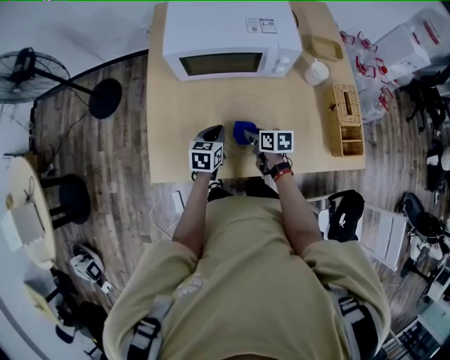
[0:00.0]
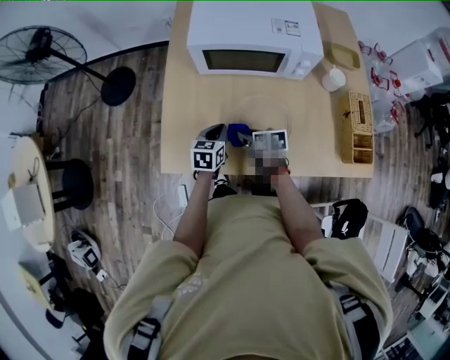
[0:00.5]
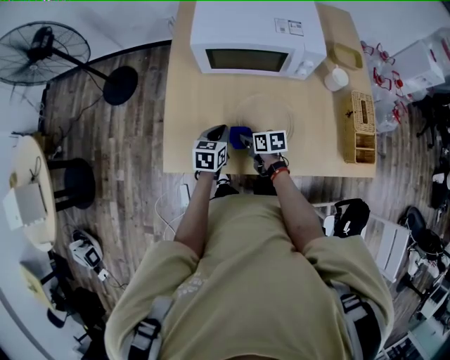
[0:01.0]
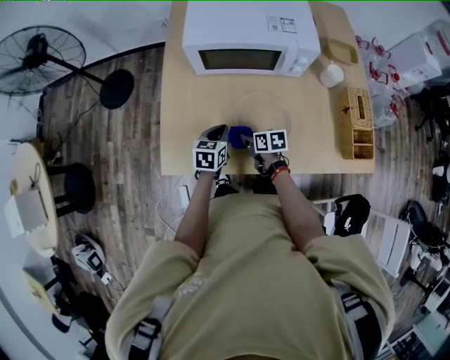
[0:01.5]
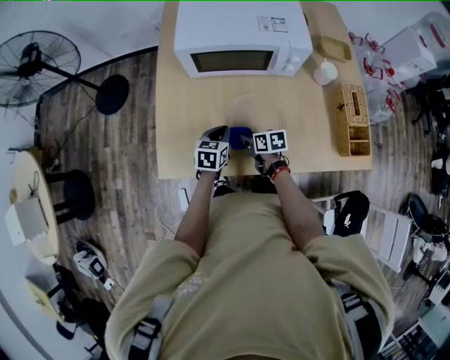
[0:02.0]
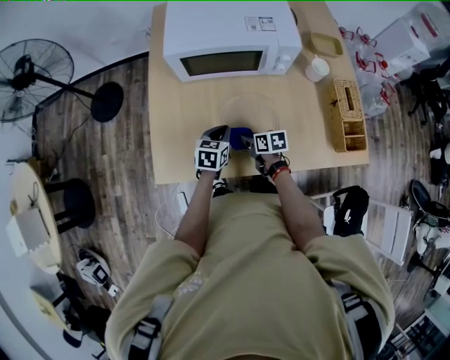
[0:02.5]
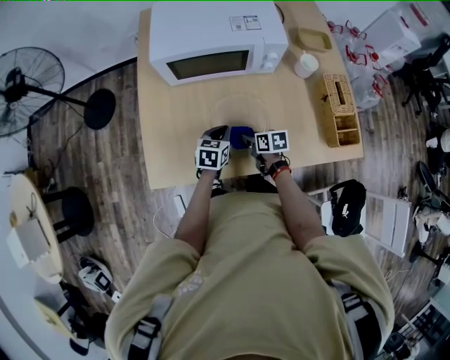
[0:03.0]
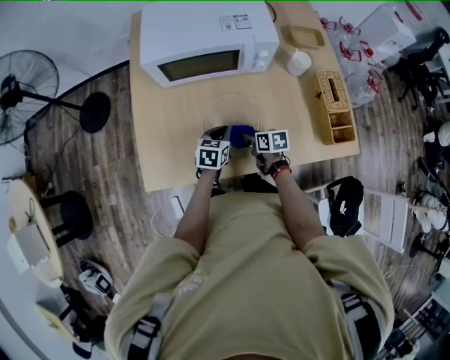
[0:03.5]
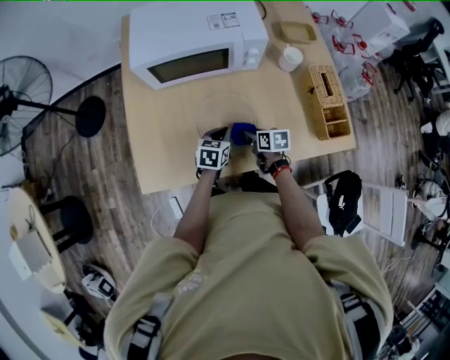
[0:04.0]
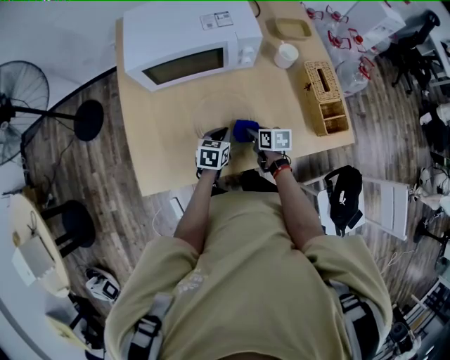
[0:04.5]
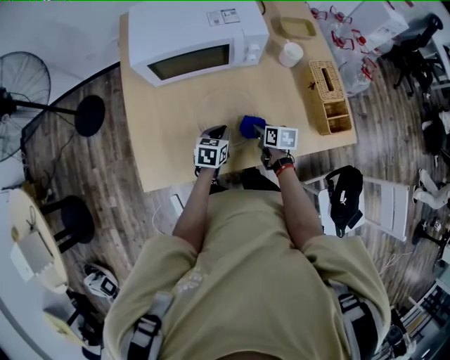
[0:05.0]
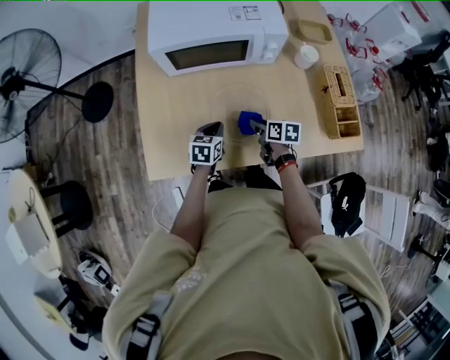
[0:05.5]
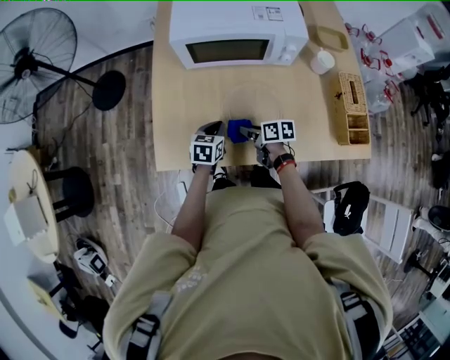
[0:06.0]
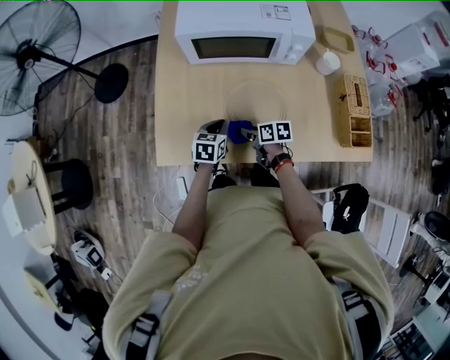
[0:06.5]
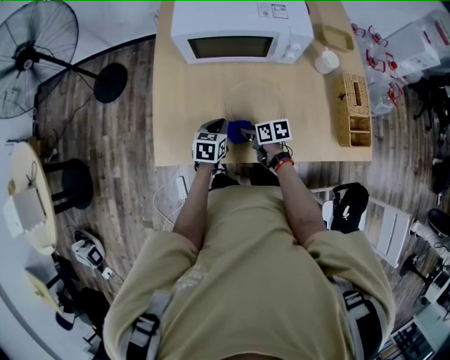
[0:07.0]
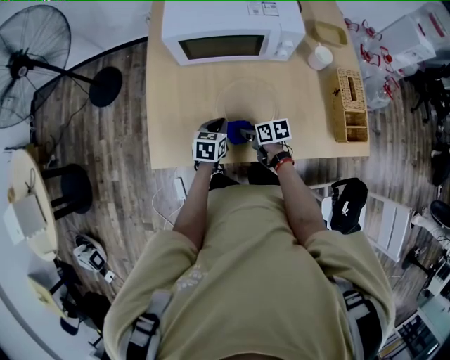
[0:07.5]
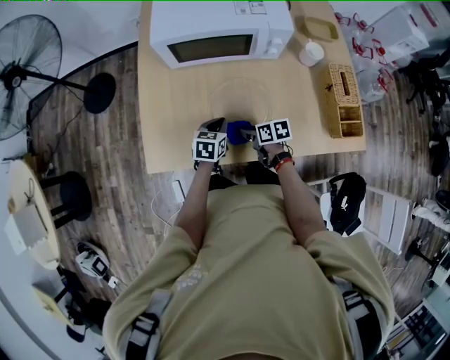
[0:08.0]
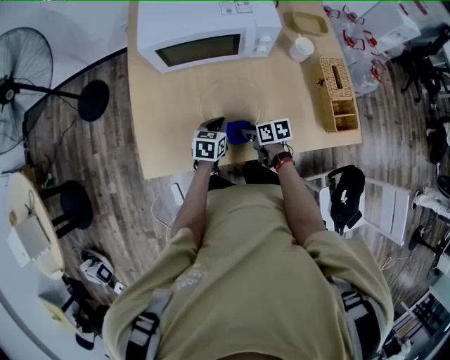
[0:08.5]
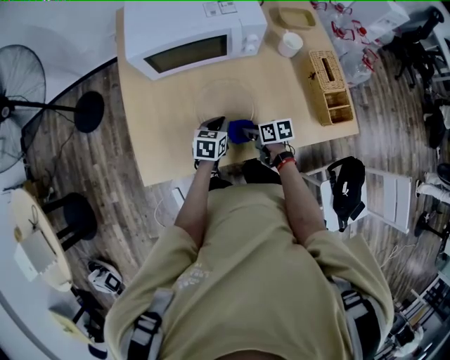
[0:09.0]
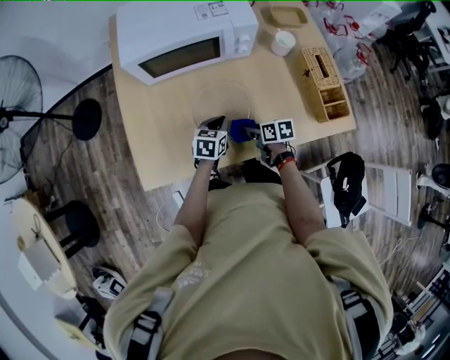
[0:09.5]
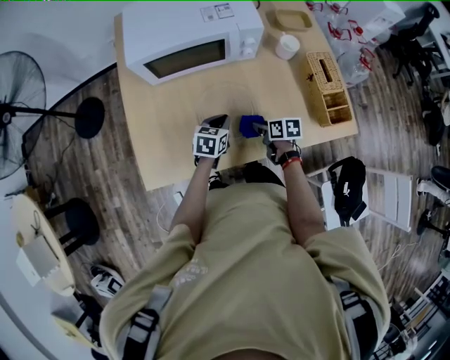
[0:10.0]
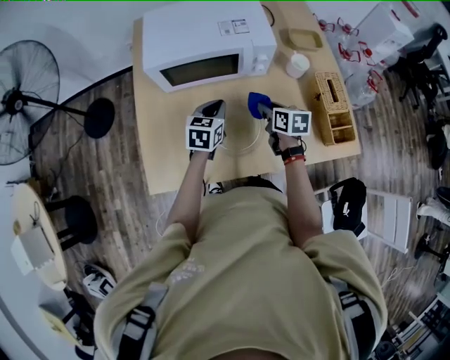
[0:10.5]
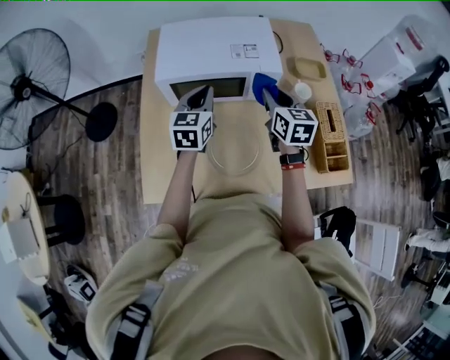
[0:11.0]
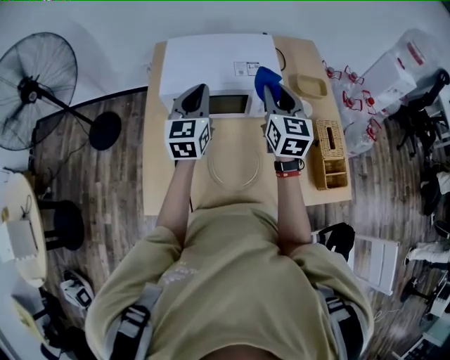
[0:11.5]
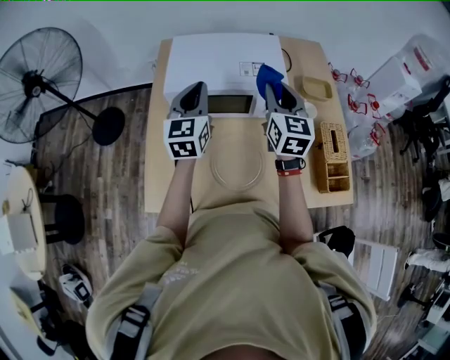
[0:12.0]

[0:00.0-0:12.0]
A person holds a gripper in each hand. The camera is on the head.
0:00.0 to 0:02.0: The right gripper heads to the left, covering about 5 cm.
0:02.0 to 0:04.0: Both grippers move to the right, some 10 cm.
0:04.0 to 0:06.0: Both grippers travel together to the left, approximately 10 cm. The right gripper turns by approximately 20 degrees.
0:06.0 to 0:08.0: The left gripper goes some 5 cm to the right; the right gripper changes place by some 5 cm.
0:08.0 to 0:10.0: The right gripper shifts approximately 10 cm to the right. Meanwhile the left gripper goes some 5 cm to the right.
0:10.0 to 0:12.0: Both grippers move upward and forward, roughly 40 cm. The right gripper points its fingers roughly 40 degrees further upward. The left gripper points its fingers some 40 degrees further upward.

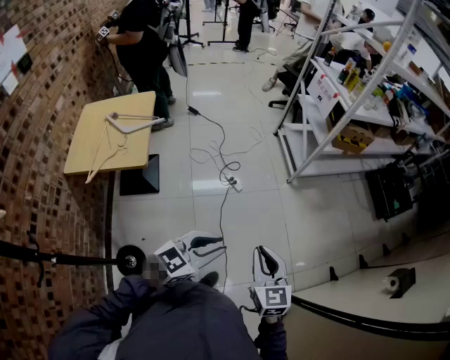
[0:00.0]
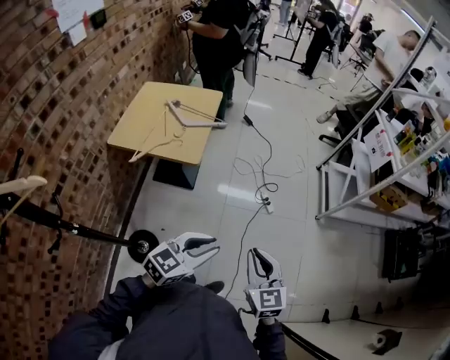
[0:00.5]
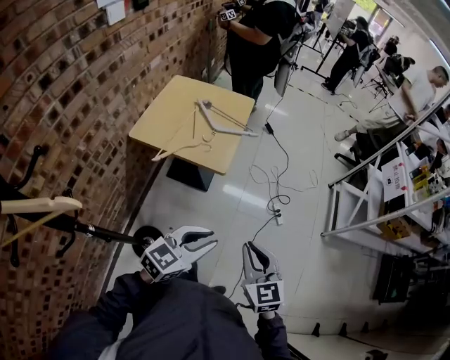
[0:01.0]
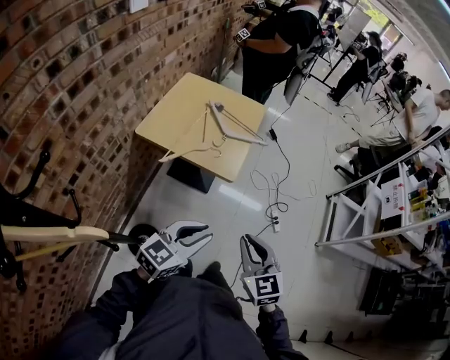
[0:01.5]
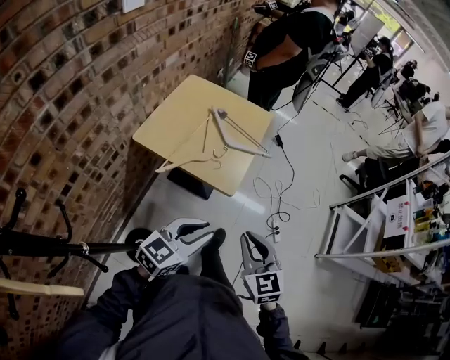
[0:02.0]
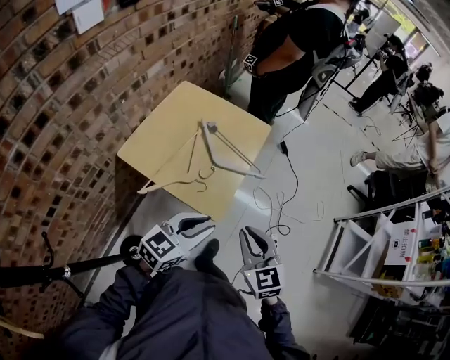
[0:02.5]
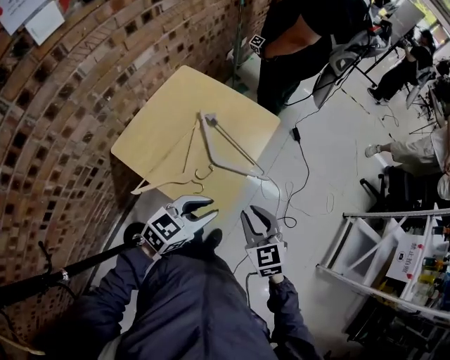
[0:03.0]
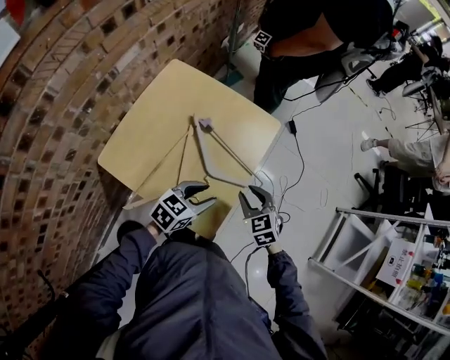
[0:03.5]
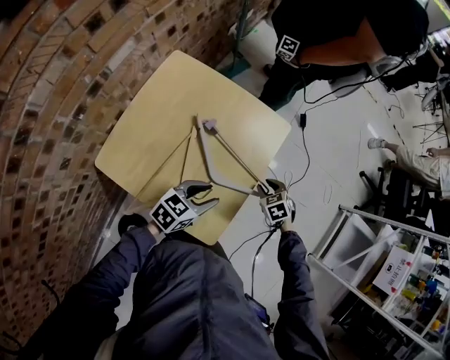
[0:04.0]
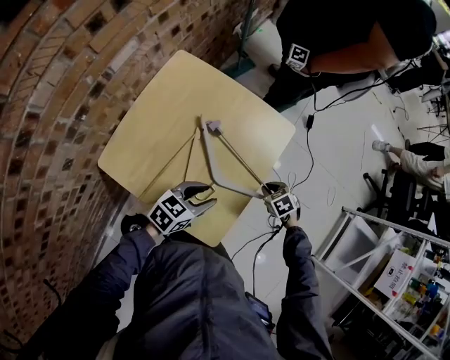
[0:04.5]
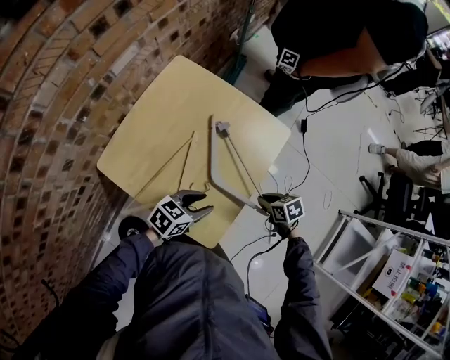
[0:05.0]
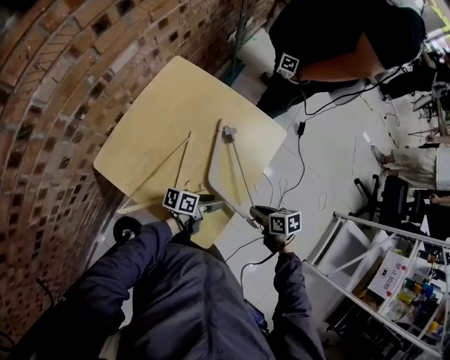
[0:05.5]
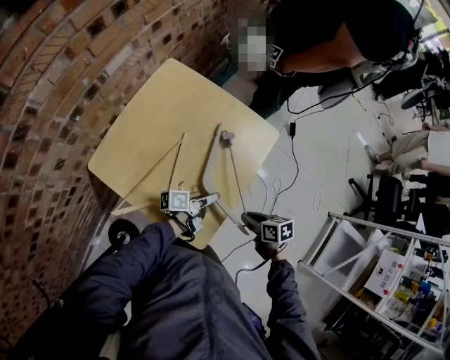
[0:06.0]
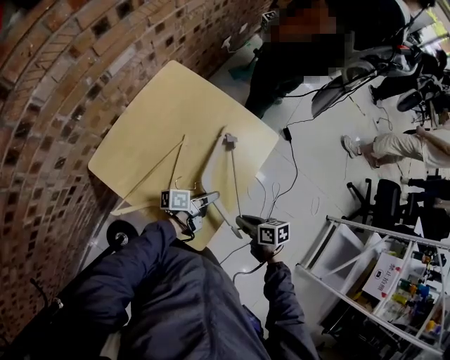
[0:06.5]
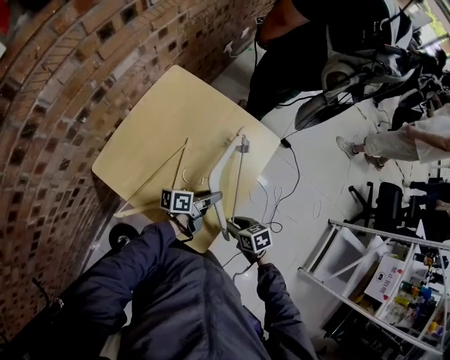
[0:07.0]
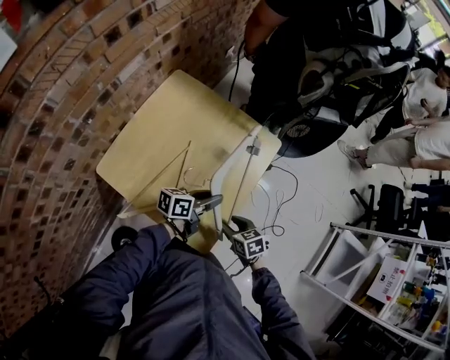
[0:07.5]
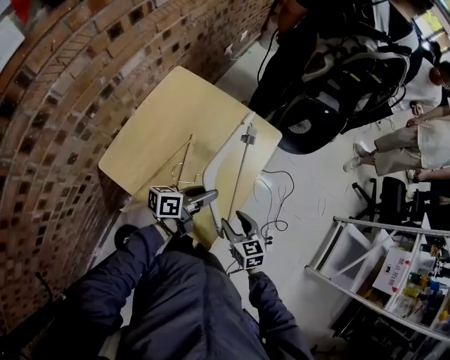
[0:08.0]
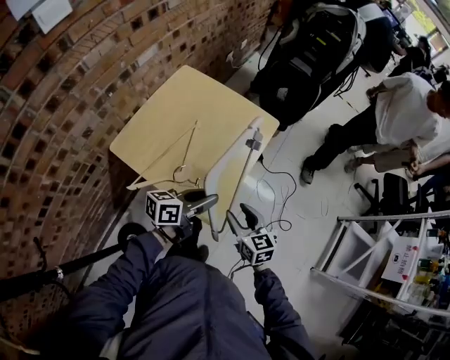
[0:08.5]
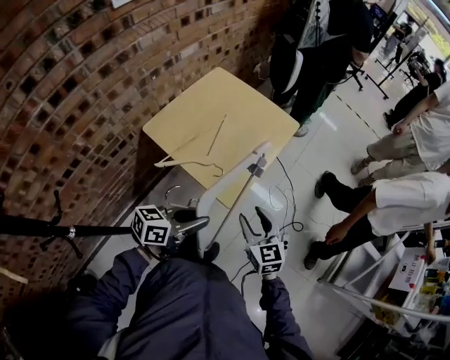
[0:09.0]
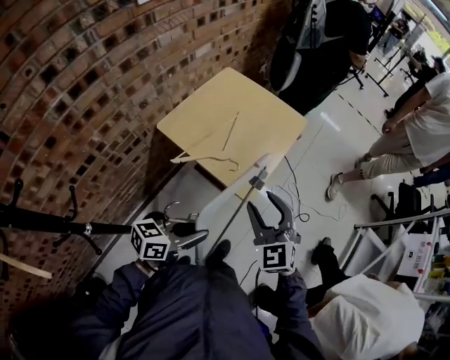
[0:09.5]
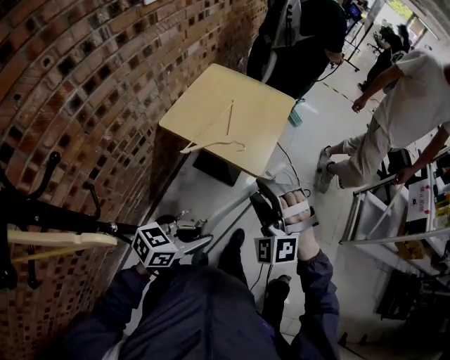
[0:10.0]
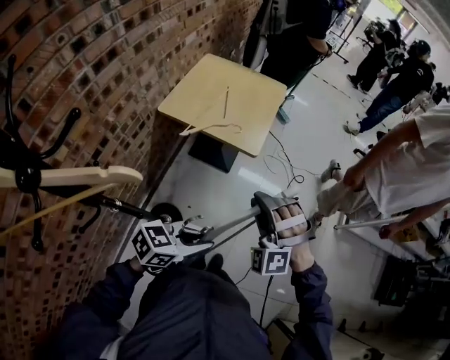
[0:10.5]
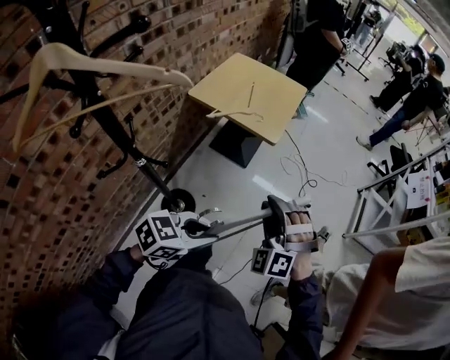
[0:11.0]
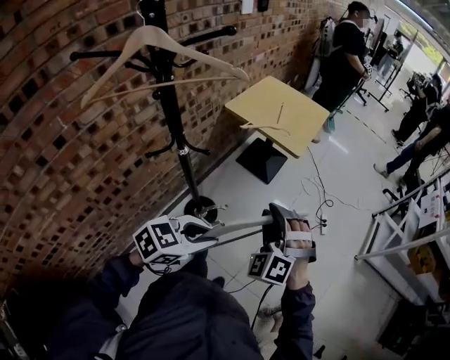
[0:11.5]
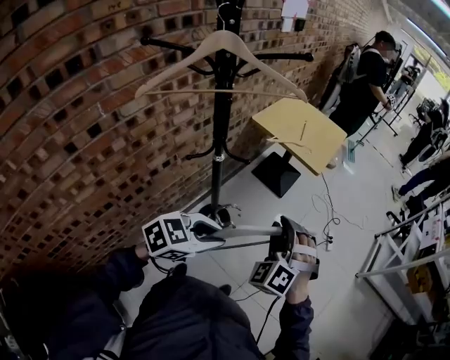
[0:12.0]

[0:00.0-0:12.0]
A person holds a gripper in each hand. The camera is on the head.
0:00.0 to 0:02.0: Both grippers are carried some 40 cm. The left gripper turns by approximately 40 degrees; the right gripper turns by approximately 40 degrees.
0:02.0 to 0:04.0: The grippers both shift forward and downward by about 50 cm. The right gripper tilts its fingers some 40 degrees downward, and opens up. Meanwhile the left gripper rotates about 30 degrees, and opens.
0:04.0 to 0:06.0: The right gripper changes place by some 10 cm, rotates approximately 40 degrees, and closes up. The left gripper goes roughly 10 cm downward, and rolls counterclockwise, seen from behind, by some 60 degrees.
0:06.0 to 0:08.0: The left gripper travels upward by some 15 cm, rotates about 30 degrees, and closes its fingers, while the right gripper changes place by roughly 10 cm, changes its angle by some 40 degrees, and opens its fingers.
0:08.0 to 0:10.0: The left gripper heads backward, covering some 50 cm, and changes its angle by some 40 degrees; the right gripper heads backward and upward, covering roughly 40 cm, and rolls counterclockwise, seen from behind, by some 80 degrees.
0:10.0 to 0:12.0: The grippers both shift backward by approximately 40 cm. The left gripper changes its angle by roughly 20 degrees, while the right gripper closes.

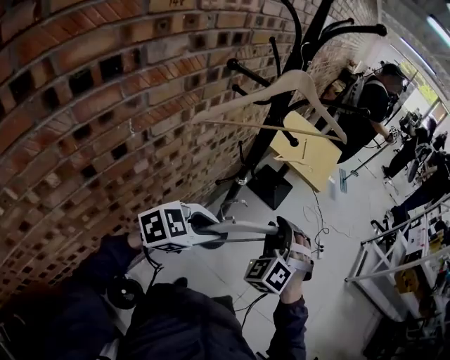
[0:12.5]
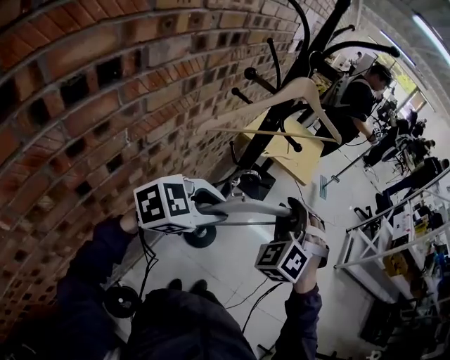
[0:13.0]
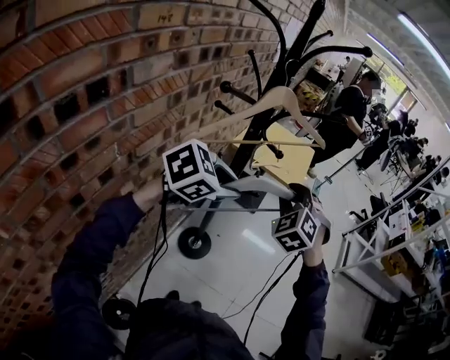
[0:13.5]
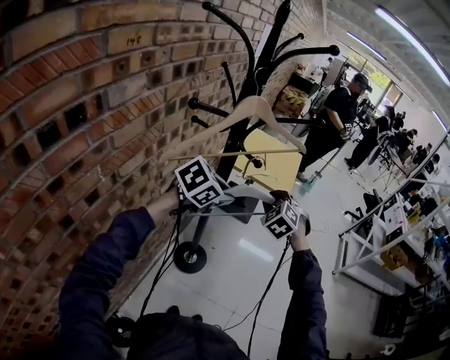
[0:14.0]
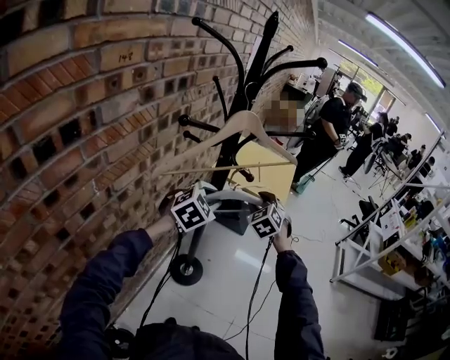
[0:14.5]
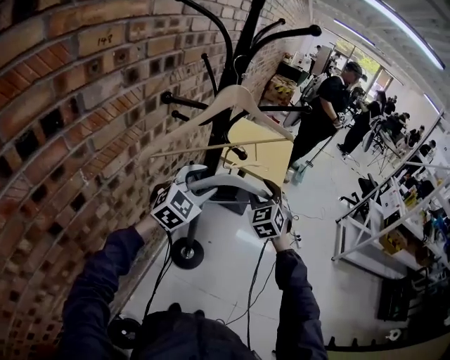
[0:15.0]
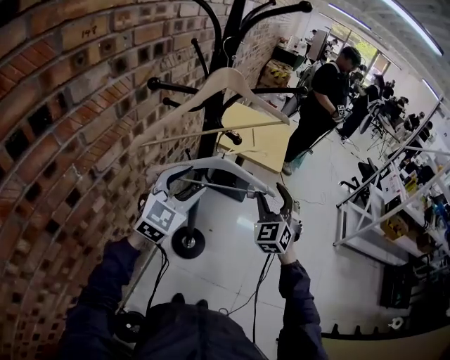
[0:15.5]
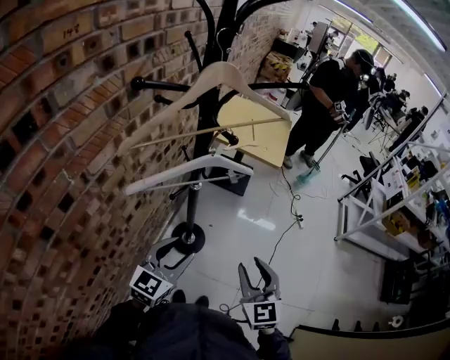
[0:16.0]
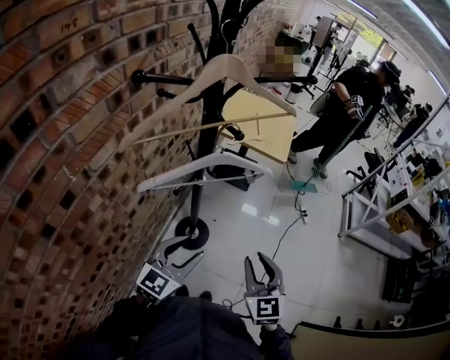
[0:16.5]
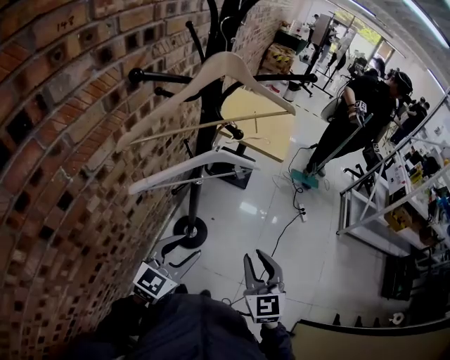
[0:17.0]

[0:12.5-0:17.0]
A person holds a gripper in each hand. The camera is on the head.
0:12.5 to 0:14.5: Both grippers travel together forward, approximately 20 cm. The right gripper rotates about 20 degrees. Meanwhile the left gripper turns by about 30 degrees.
0:14.5 to 0:17.0: Both grippers travel together backward, about 25 cm. The right gripper swivels about 30 degrees, and opens, then closes again, while the left gripper swivels approximately 30 degrees.
